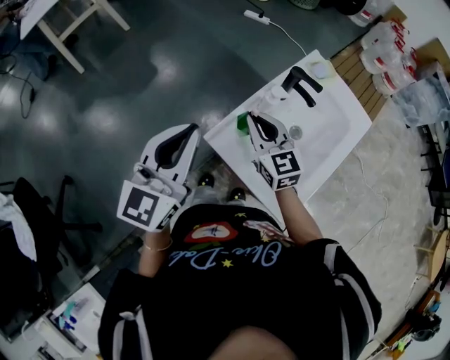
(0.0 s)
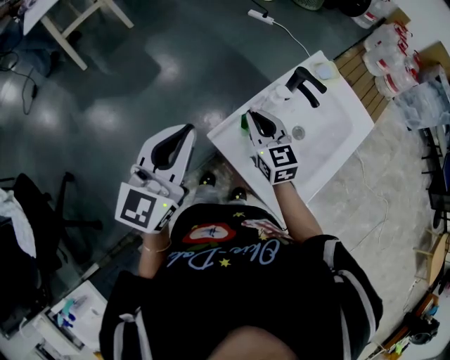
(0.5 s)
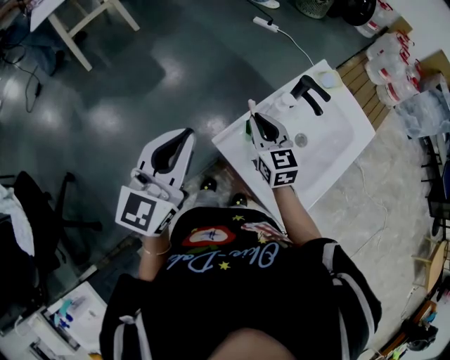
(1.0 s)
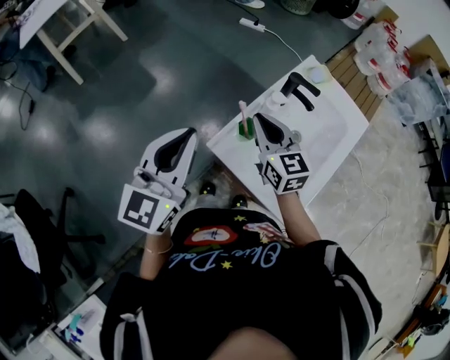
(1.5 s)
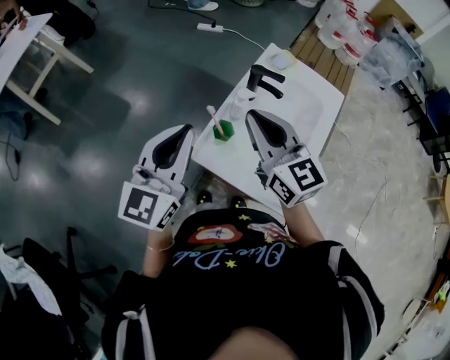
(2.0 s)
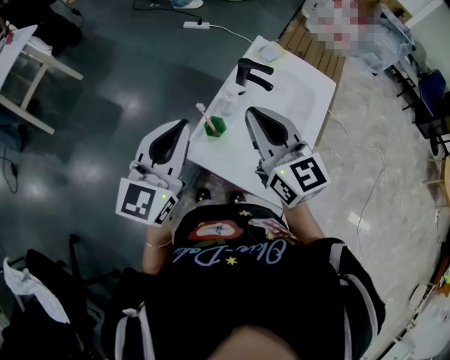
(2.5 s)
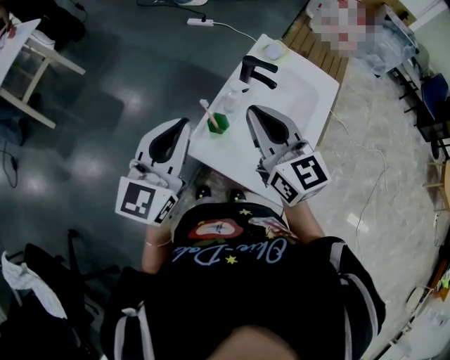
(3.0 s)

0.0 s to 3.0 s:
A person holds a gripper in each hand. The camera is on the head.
0.0 to 1.5 s: The grippers make only small movements.
1.5 to 3.0 s: The right gripper travels upward and to the right by roughly 10 cm. The left gripper heads to the right, covering some 5 cm.

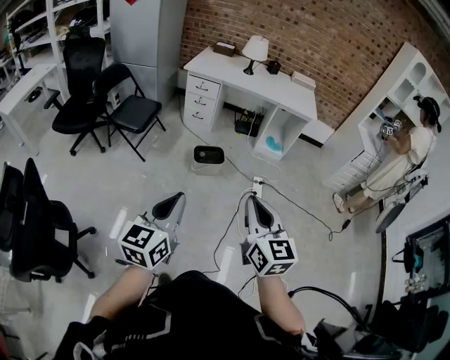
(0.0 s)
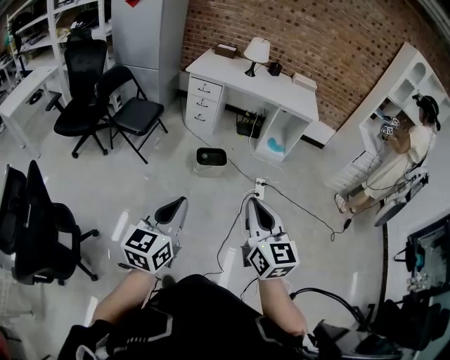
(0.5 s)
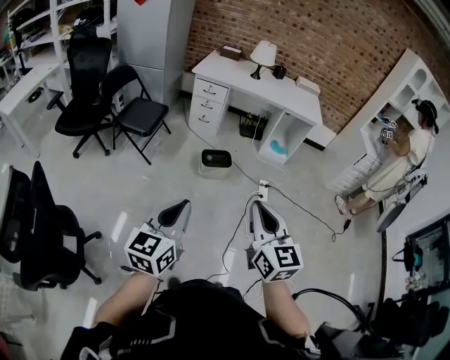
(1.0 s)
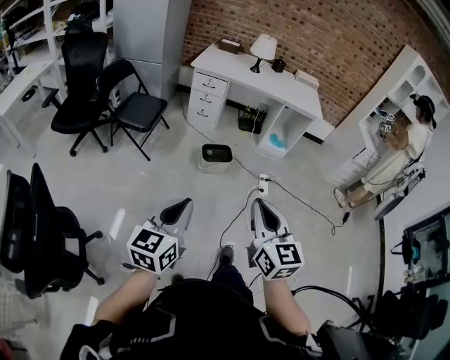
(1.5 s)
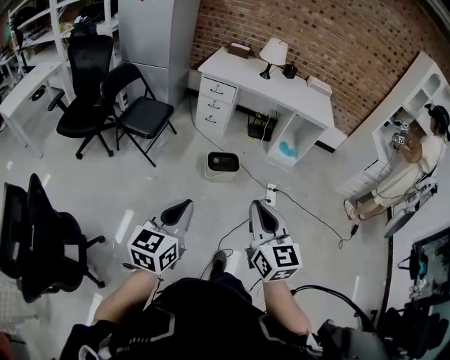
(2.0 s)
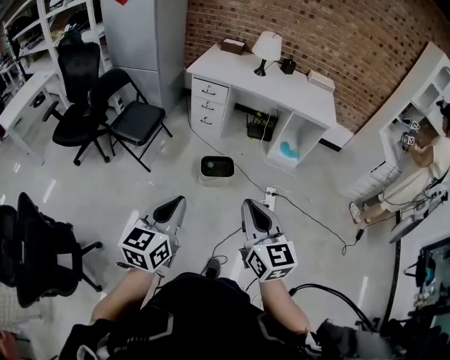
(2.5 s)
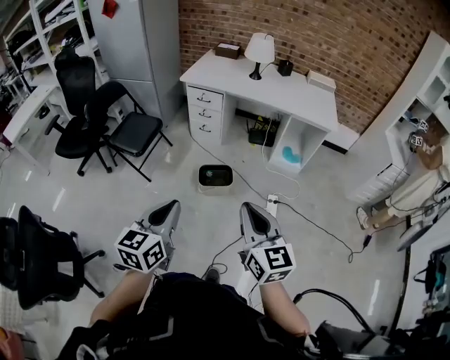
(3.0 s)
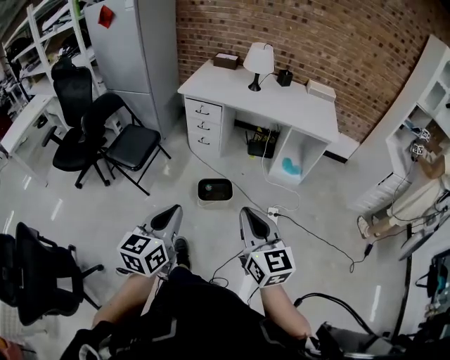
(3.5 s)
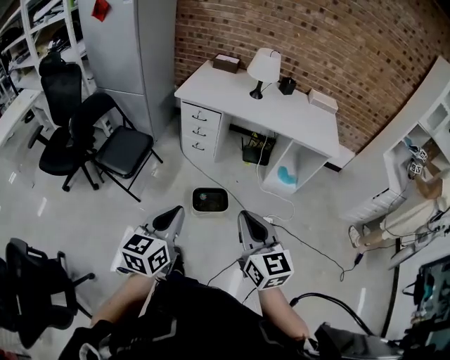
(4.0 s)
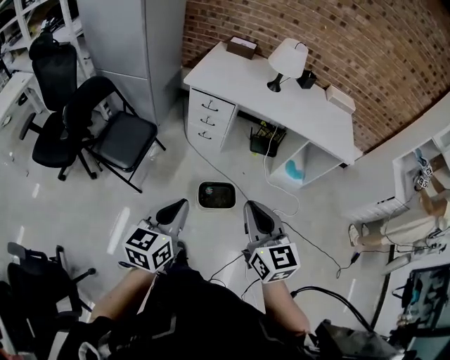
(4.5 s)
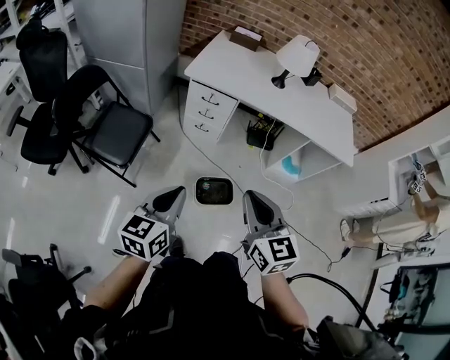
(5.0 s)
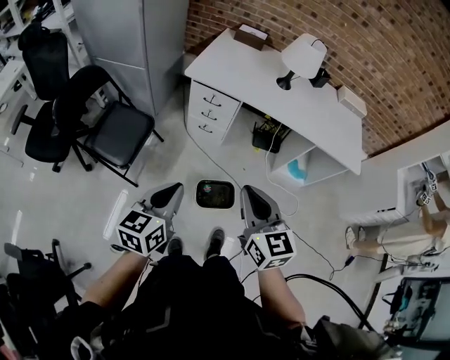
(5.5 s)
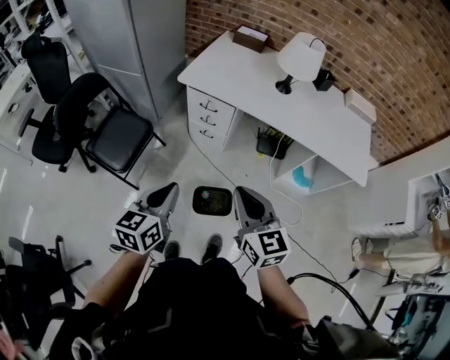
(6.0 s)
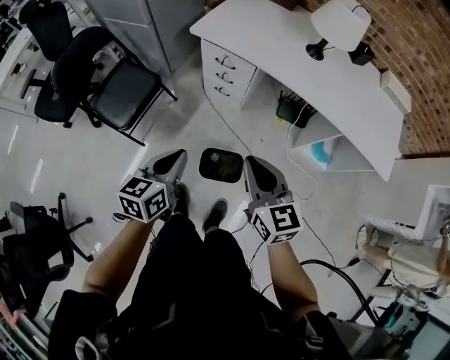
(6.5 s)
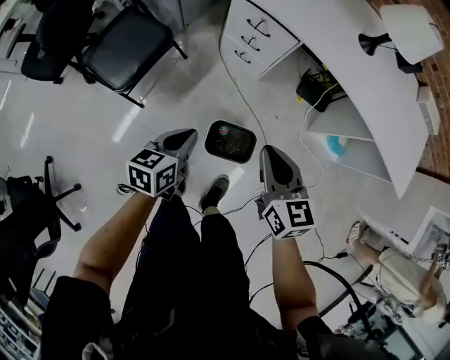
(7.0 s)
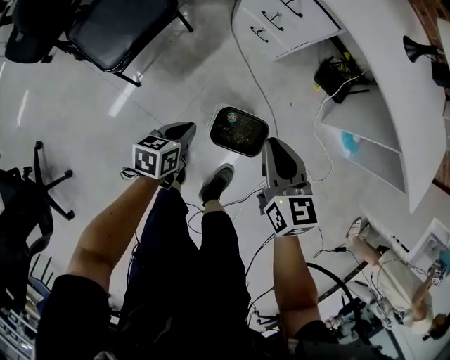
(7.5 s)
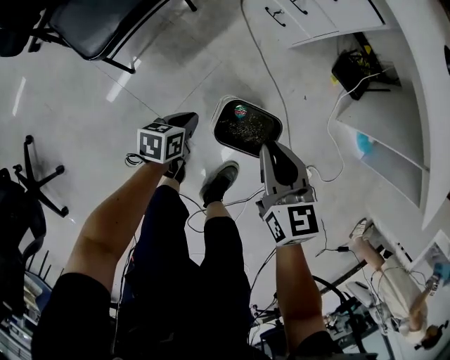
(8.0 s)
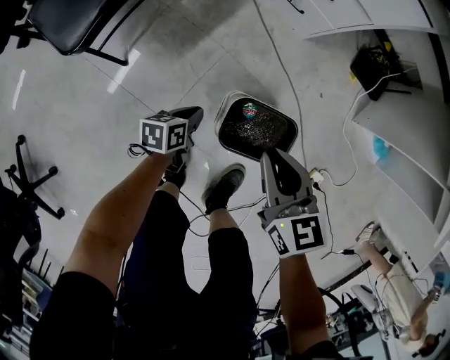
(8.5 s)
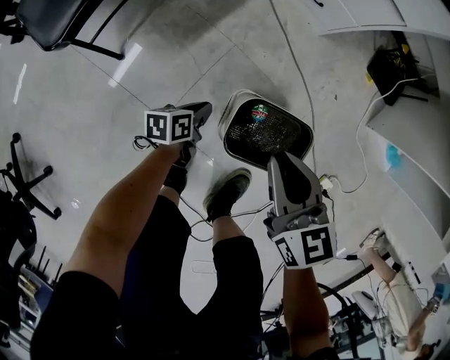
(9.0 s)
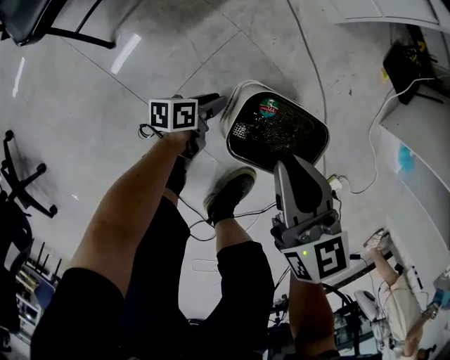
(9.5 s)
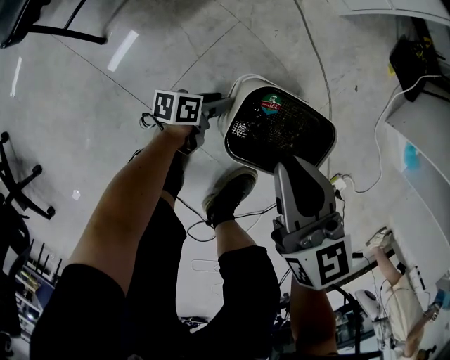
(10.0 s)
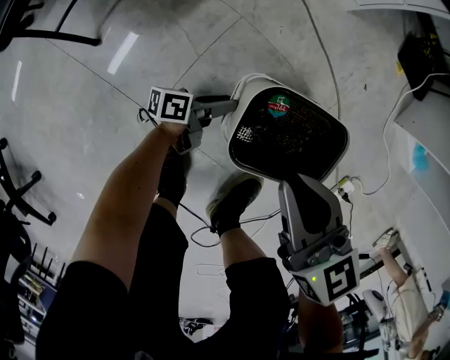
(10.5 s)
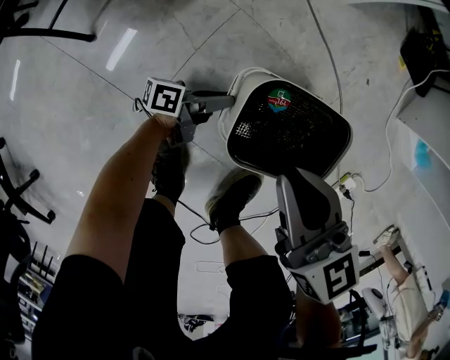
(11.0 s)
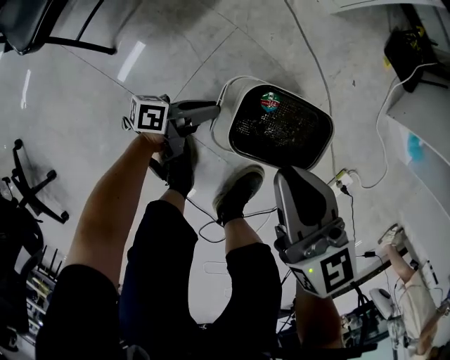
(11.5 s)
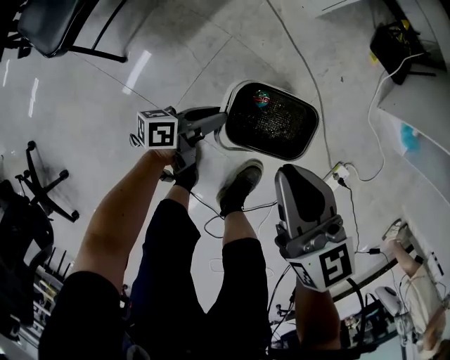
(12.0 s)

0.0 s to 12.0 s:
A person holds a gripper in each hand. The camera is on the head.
0.0 to 2.0 s: The two grippers go about 10 cm to the left and forward.
2.0 to 4.0 s: Both grippers move forward, some 35 cm.
4.0 to 6.0 s: Both grippers travel together forward, about 30 cm.
6.0 to 8.0 s: The grippers both shift downward by roughly 50 cm. The right gripper turns by some 30 degrees. The left gripper rotates roughly 40 degrees.
8.0 to 10.0 s: Both grippers travel together downward, approximately 25 cm. The left gripper rotates approximately 20 degrees, and opens its fingers.
10.0 to 12.0 s: The left gripper shifts roughly 20 cm upward, while the right gripper travels upward by roughly 10 cm.

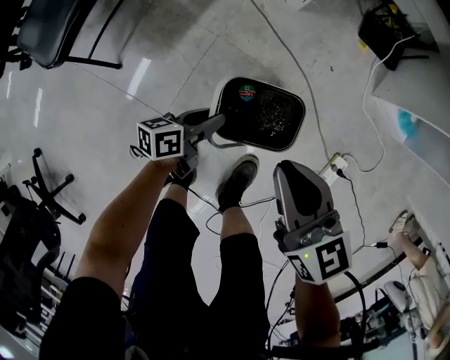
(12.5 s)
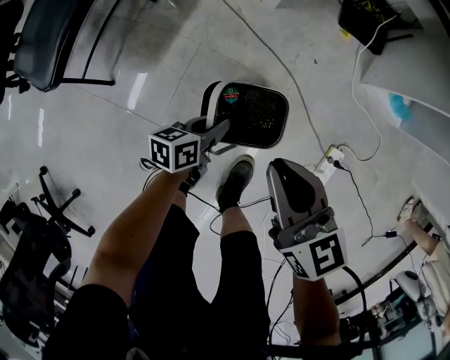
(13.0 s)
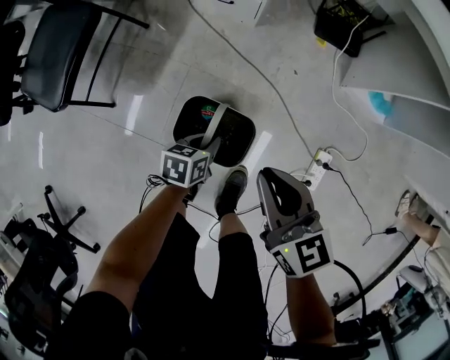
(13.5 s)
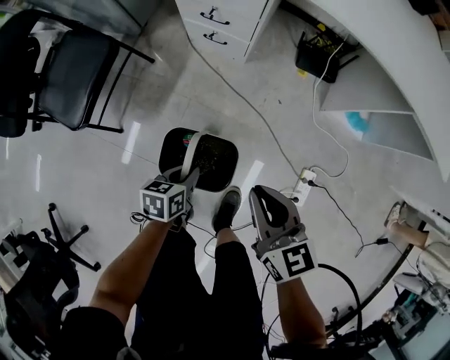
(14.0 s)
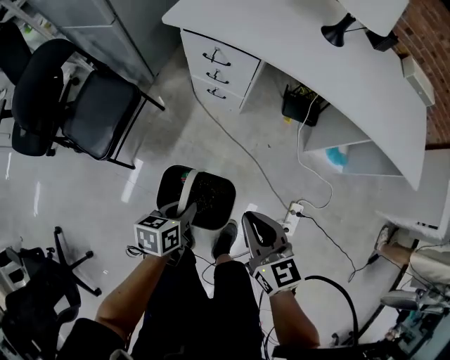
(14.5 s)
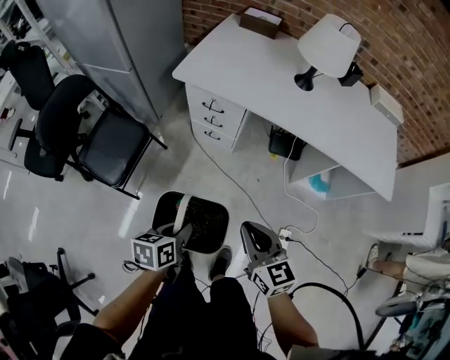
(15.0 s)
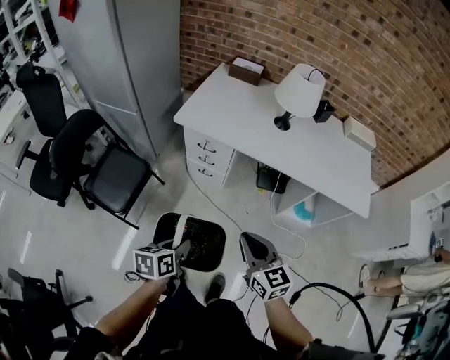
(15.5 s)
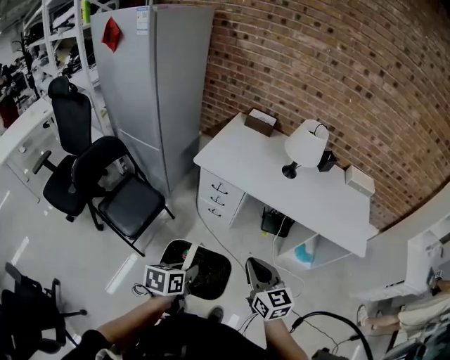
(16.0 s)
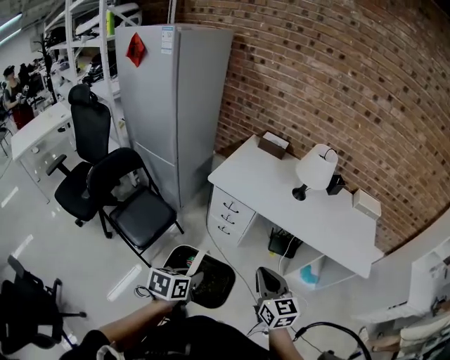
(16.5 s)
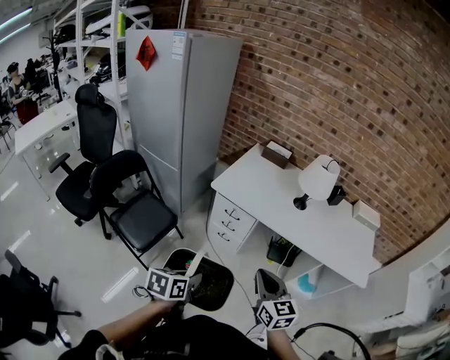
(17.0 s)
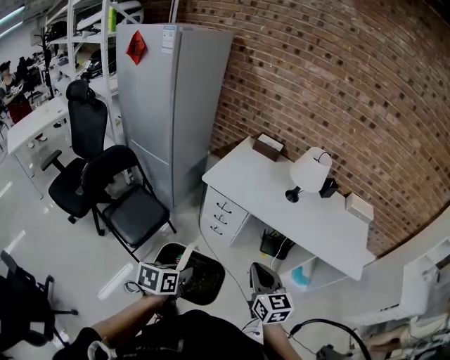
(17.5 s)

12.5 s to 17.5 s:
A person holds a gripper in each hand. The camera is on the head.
12.5 to 15.0 s: Both grippers move upward, about 40 cm. The left gripper turns by some 20 degrees.
15.0 to 17.5 s: The grippers both shift upward by about 20 cm.

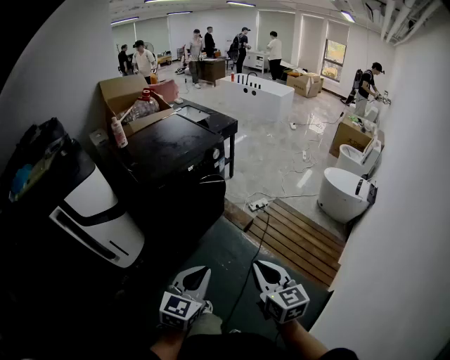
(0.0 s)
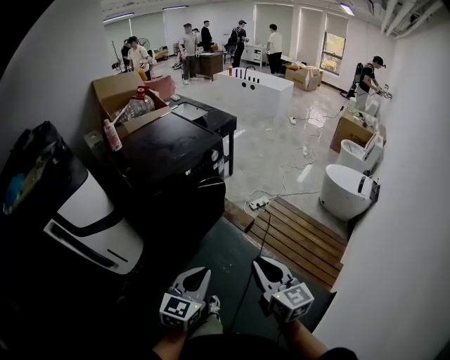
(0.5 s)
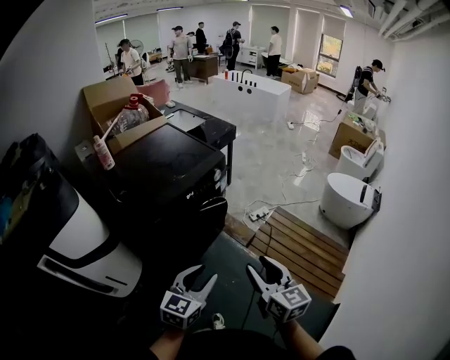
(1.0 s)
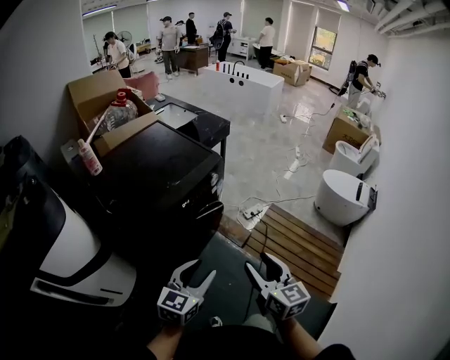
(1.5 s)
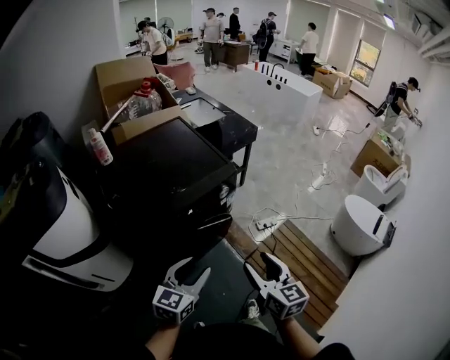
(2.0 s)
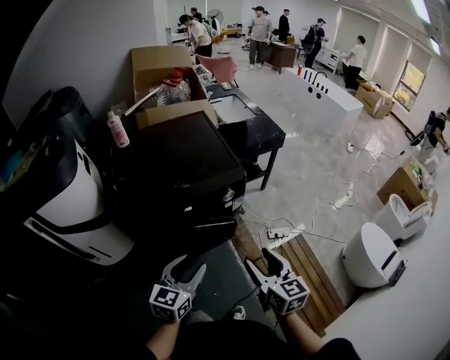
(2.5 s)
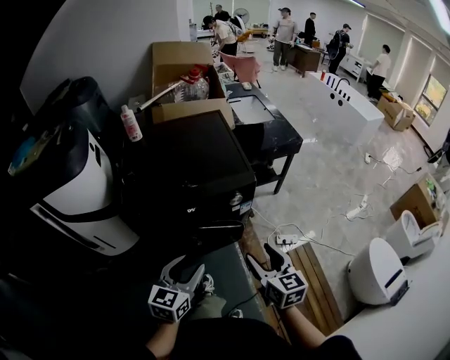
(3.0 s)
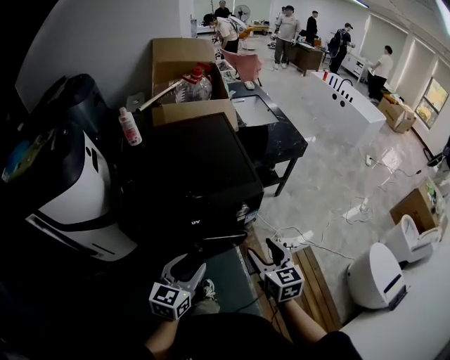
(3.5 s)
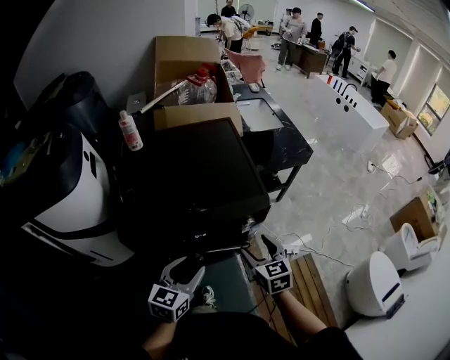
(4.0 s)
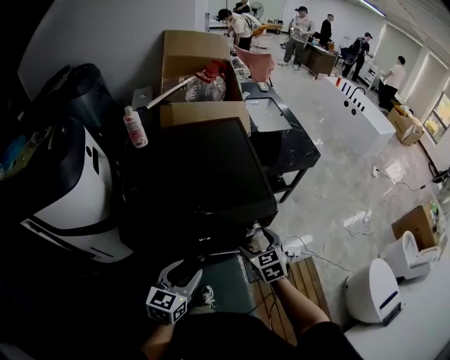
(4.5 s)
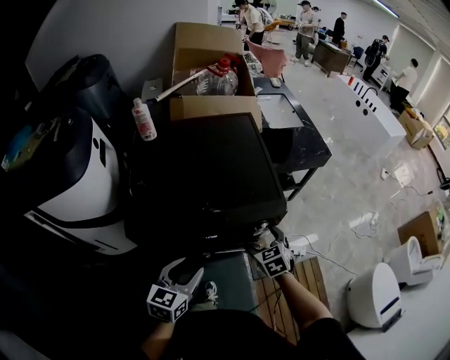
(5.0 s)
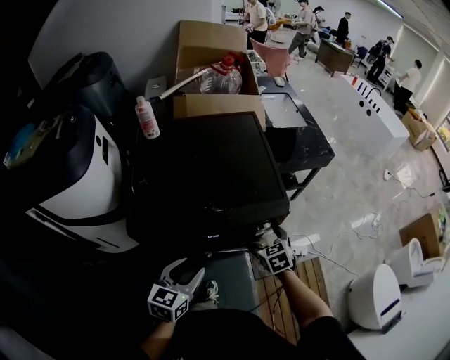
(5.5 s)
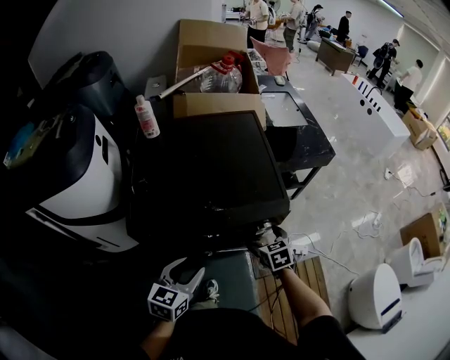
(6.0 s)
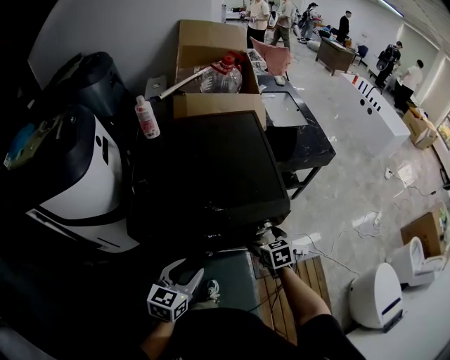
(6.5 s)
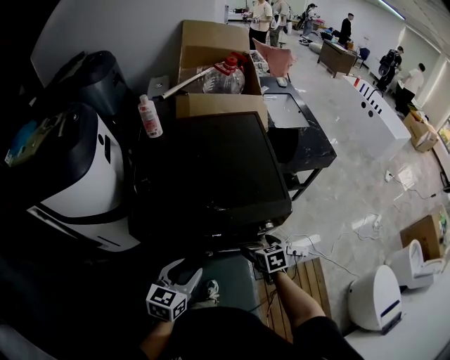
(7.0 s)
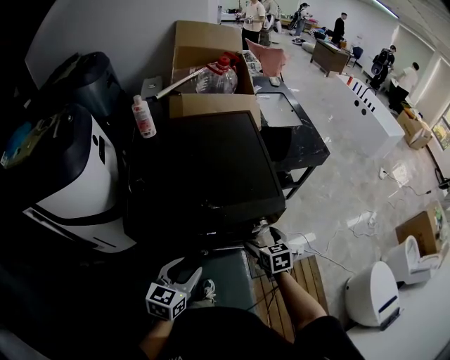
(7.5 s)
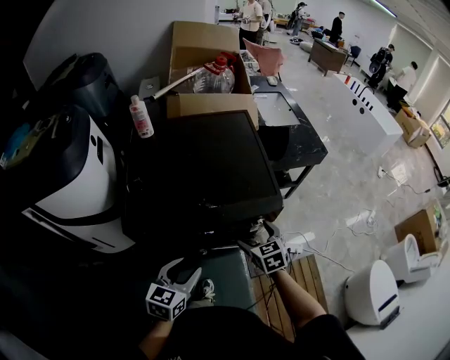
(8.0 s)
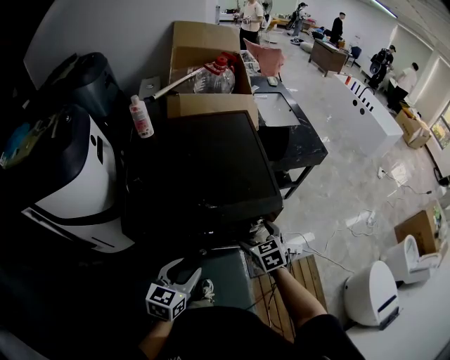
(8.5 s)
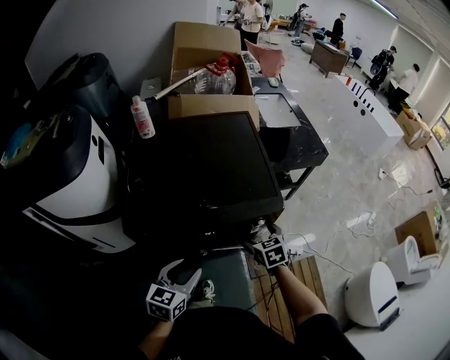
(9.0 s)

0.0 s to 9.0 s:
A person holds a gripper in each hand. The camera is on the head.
0.0 to 2.0 s: The grippers both shift forward by approximately 40 cm. The left gripper opens its fingers; the right gripper opens up.
2.0 to 4.5 s: The right gripper heads forward and downward, covering some 35 cm, and swivels about 40 degrees. Meanwhile the left gripper is displaced forward by about 15 cm, and turns by roughly 30 degrees.
4.5 to 7.0 s: The right gripper heads downward, covering about 10 cm, and swivels some 20 degrees.
7.0 to 9.0 s: The right gripper is displaced upward by approximately 5 cm.
